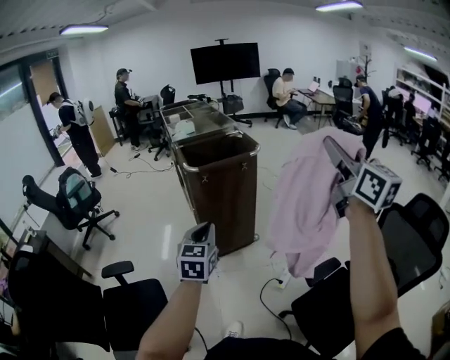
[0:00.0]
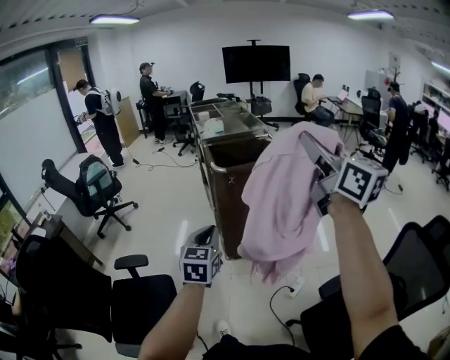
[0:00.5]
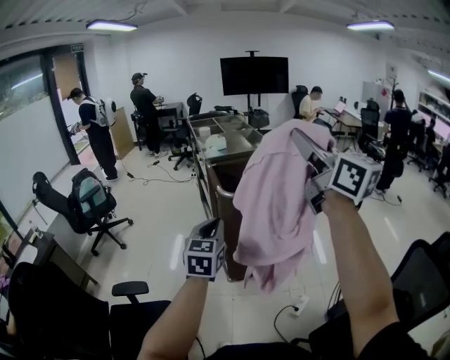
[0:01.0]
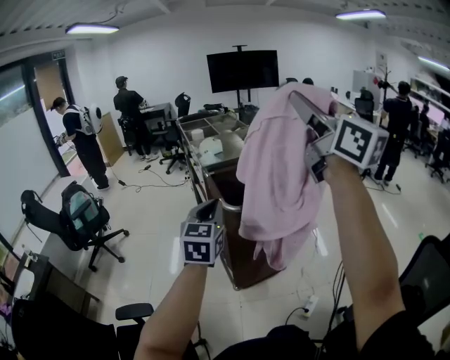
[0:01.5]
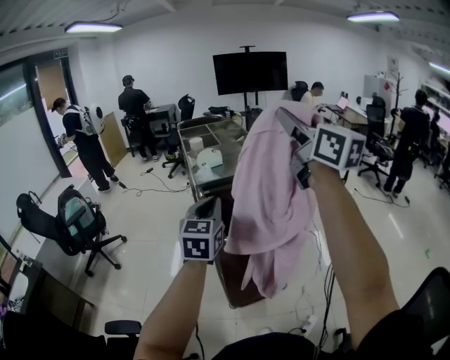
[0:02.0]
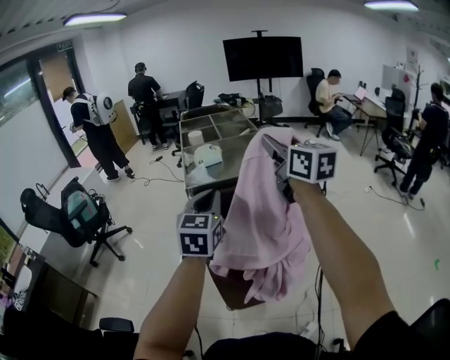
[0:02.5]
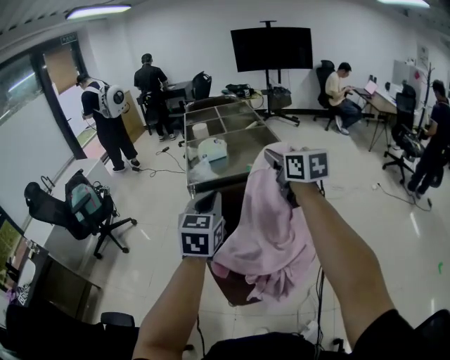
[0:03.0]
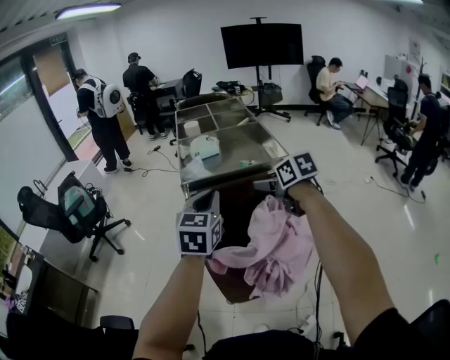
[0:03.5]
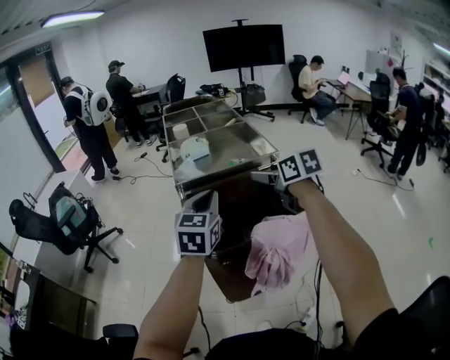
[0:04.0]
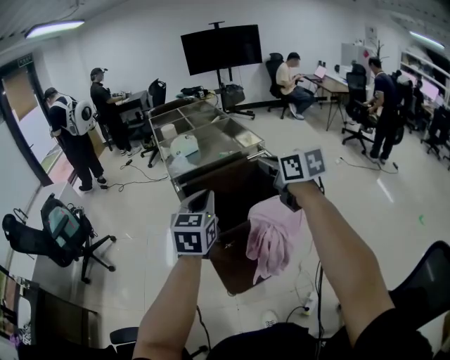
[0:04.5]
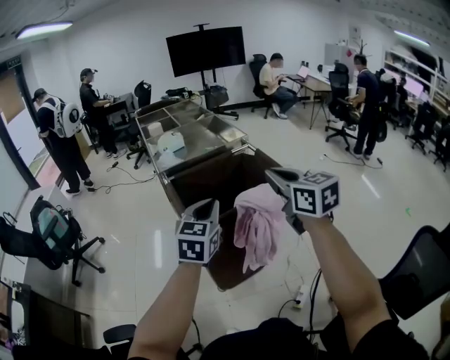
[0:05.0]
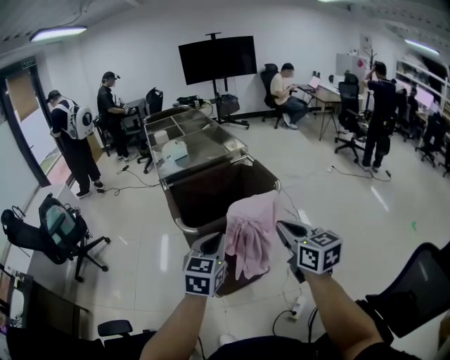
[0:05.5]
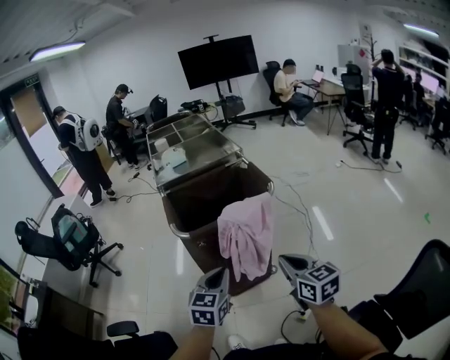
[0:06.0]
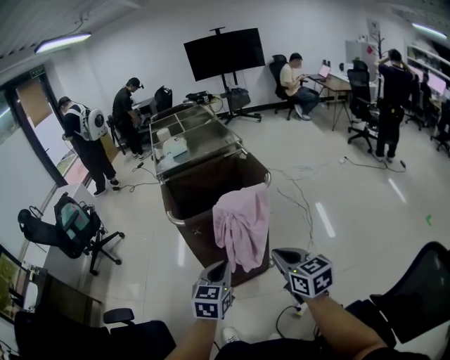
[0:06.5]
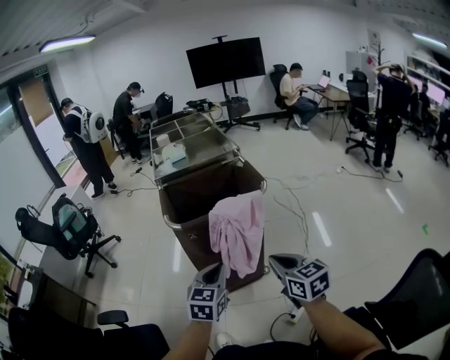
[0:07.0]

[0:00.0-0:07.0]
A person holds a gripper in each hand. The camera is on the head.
0:00.0 to 0:02.0: The two grippers travel together, forward, about 40 cm.
0:02.0 to 0:03.5: The left gripper moves forward and to the right, some 15 cm, while the right gripper is displaced downward and forward by about 40 cm, tips its fingers downward by approximately 50 degrees, and opens its fingers.
0:03.5 to 0:05.0: The left gripper heads backward, covering about 15 cm, while the right gripper goes about 25 cm backward and upward, rotates some 30 degrees, and closes.
0:05.0 to 0:07.0: The right gripper heads downward, backward and to the right, covering approximately 25 cm, while the left gripper shifts about 20 cm backward, downward and to the right.

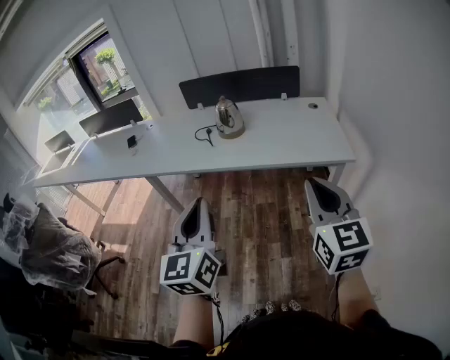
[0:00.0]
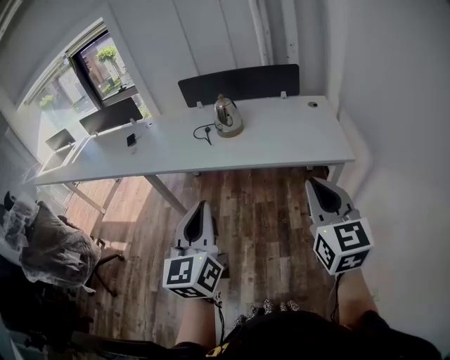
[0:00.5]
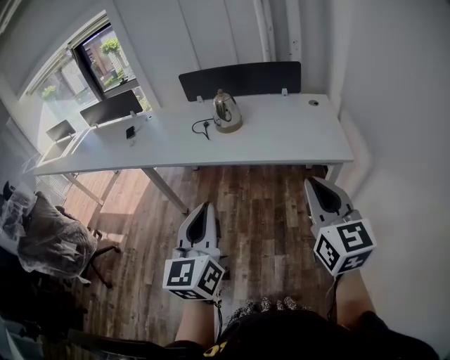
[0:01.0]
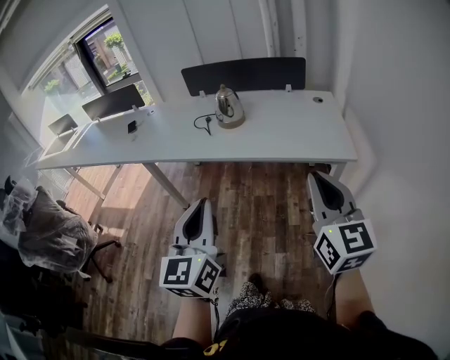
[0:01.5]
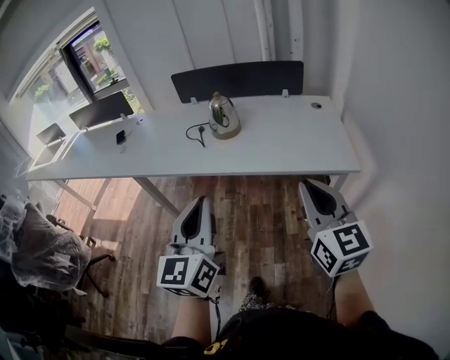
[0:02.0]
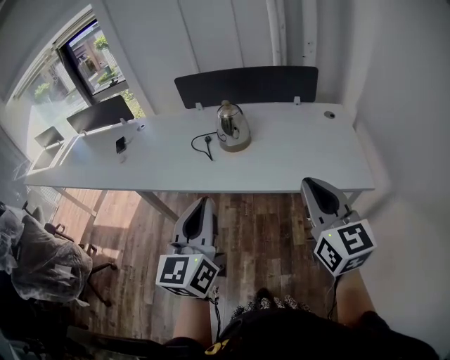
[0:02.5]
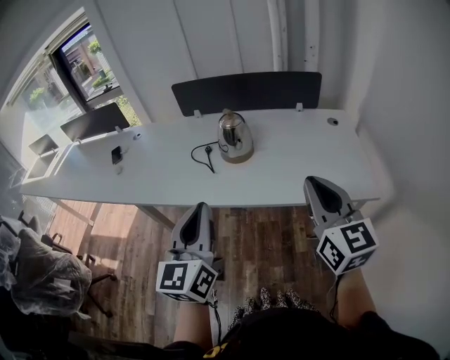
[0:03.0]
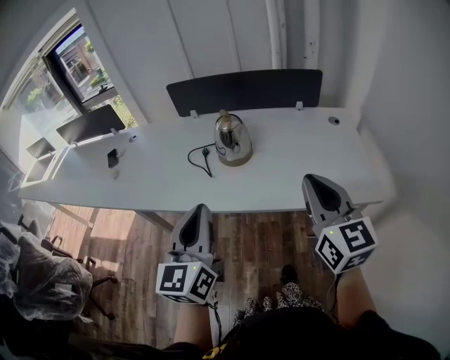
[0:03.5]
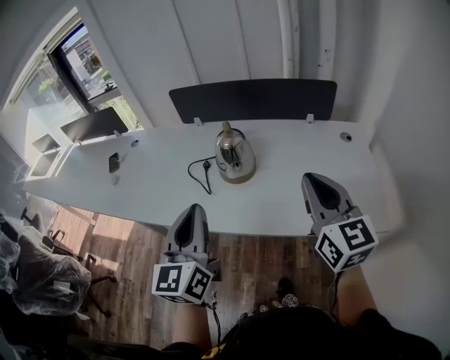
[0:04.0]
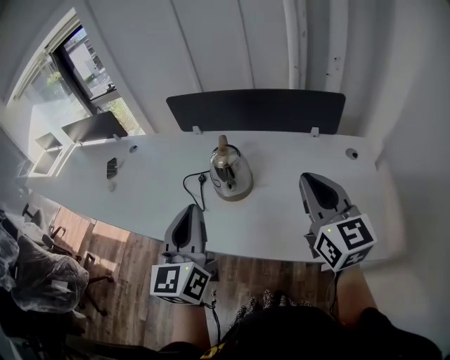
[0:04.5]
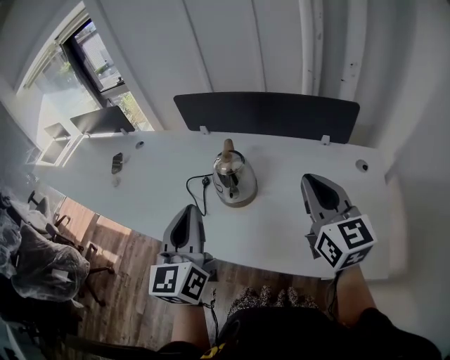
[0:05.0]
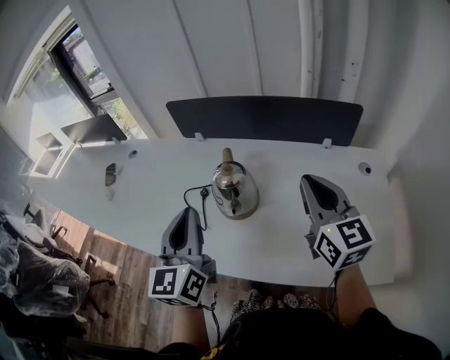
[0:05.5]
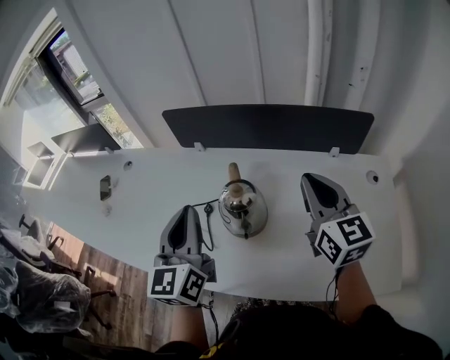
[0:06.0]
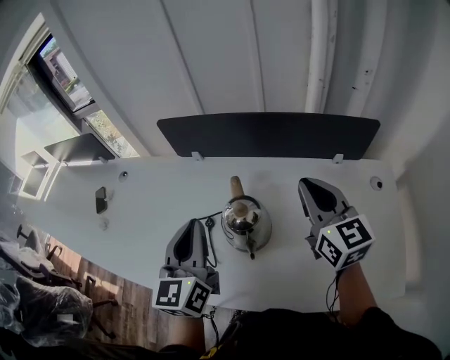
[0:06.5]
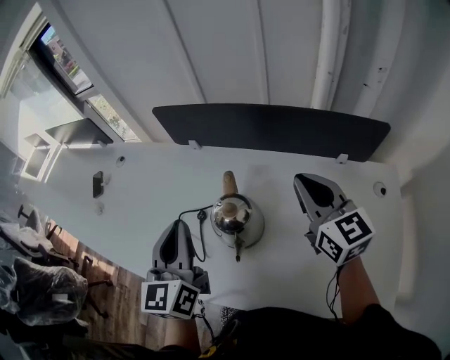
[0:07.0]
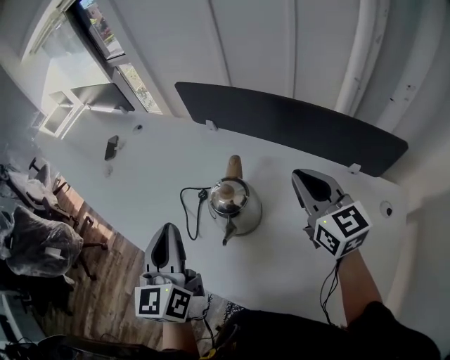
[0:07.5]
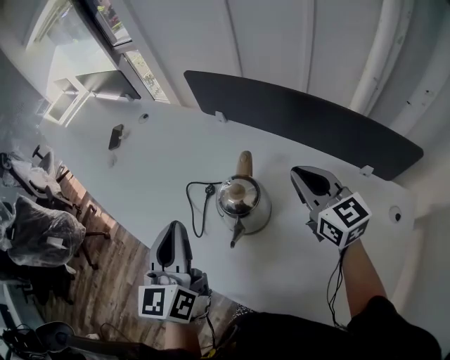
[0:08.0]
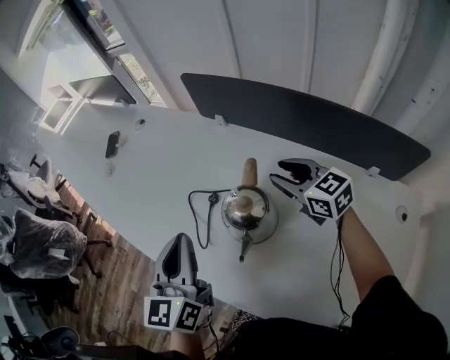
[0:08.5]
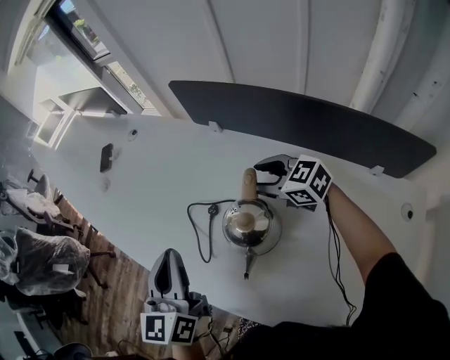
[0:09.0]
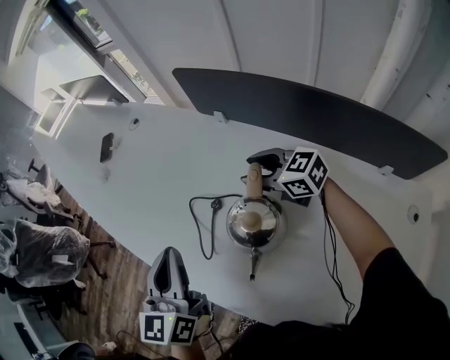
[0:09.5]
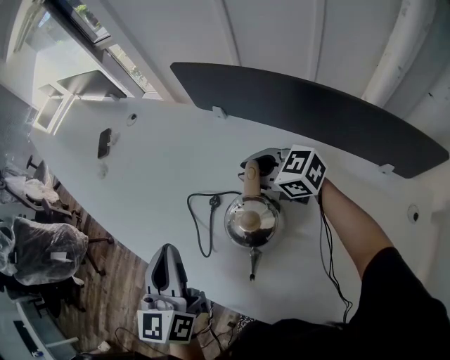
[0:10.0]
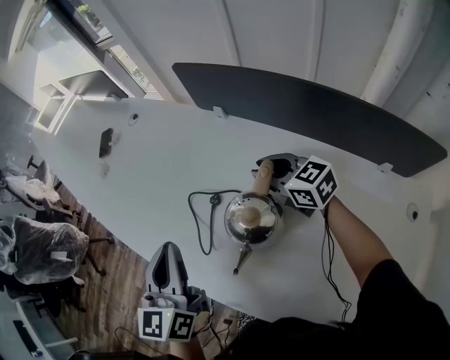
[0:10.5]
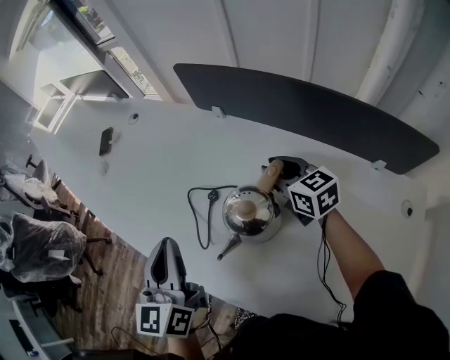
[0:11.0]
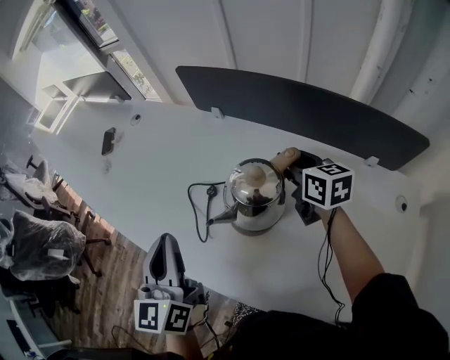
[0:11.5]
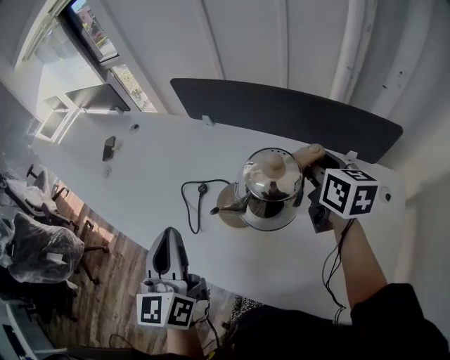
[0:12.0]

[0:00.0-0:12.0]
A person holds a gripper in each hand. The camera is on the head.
0:00.0 to 0:02.0: The grippers both shift forward by some 10 cm.
0:02.0 to 0:04.0: Both grippers travel together forward, roughly 30 cm.
0:04.0 to 0:06.0: The grippers both shift forward by about 25 cm.
0:06.0 to 0:08.0: The left gripper is displaced downward by some 5 cm, and turns by approximately 20 degrees, while the right gripper ends up about 15 cm from where it was, and swivels approximately 30 degrees.
0:08.0 to 0:10.0: The right gripper moves forward, downward and to the left, roughly 20 cm, changes its angle by approximately 40 degrees, and opens; the left gripper heads forward, covering approximately 5 cm.
0:10.0 to 0:12.0: The right gripper shifts by some 30 cm, and rotates roughly 60 degrees. The left gripper changes place by about 10 cm.

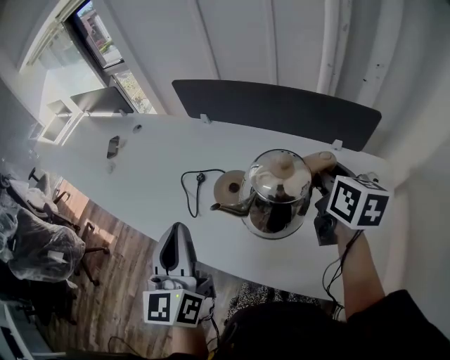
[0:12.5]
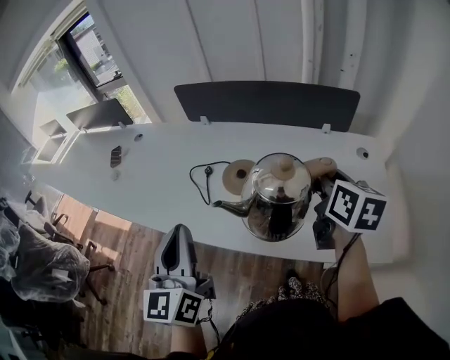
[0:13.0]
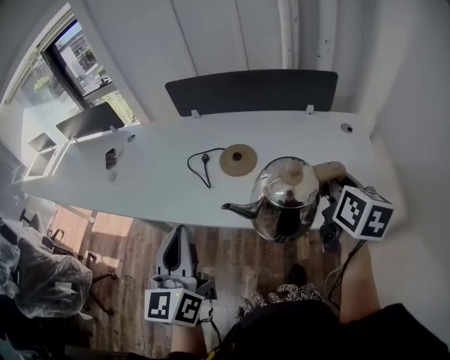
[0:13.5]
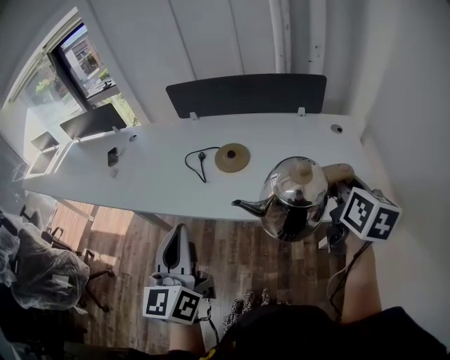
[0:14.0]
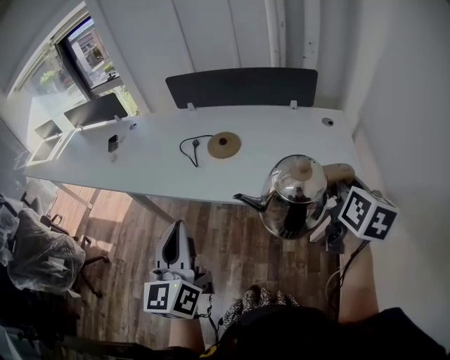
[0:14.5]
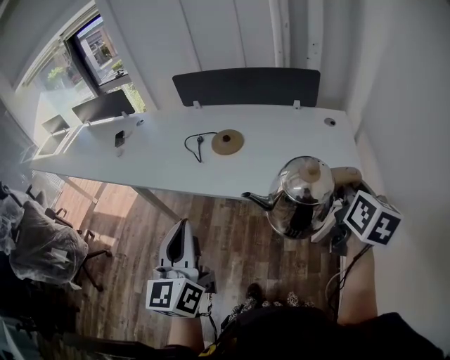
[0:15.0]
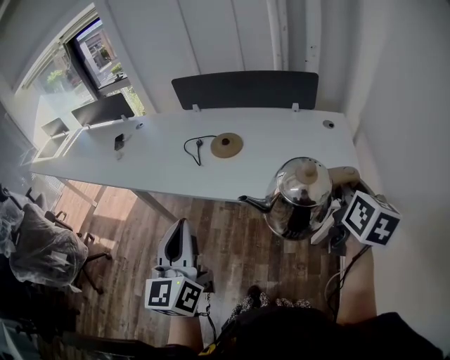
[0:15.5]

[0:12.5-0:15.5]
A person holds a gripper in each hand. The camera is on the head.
0:12.5 to 0:14.0: The right gripper moves backward, approximately 35 cm, and rotates roughly 20 degrees; the left gripper moves backward, some 20 cm.
0:14.0 to 0:15.5: Both grippers travel together backward and to the right, roughly 10 cm.

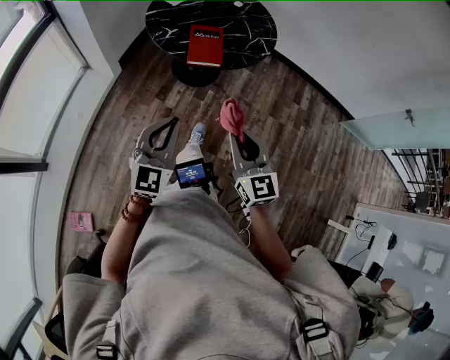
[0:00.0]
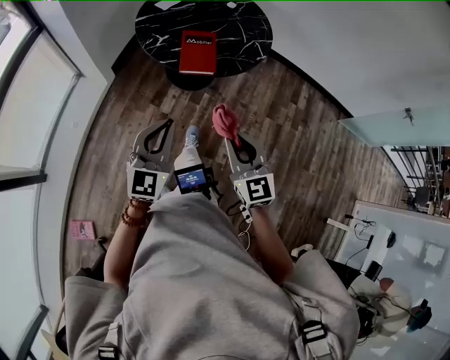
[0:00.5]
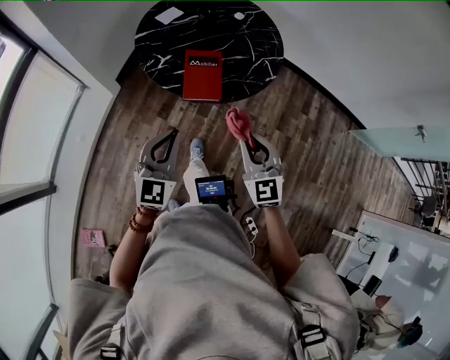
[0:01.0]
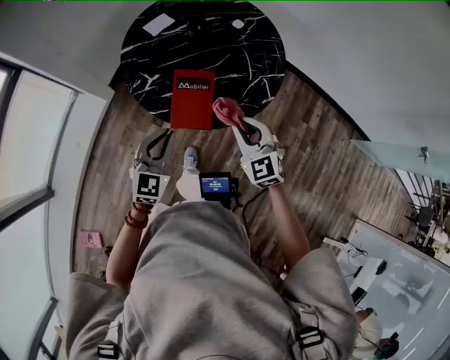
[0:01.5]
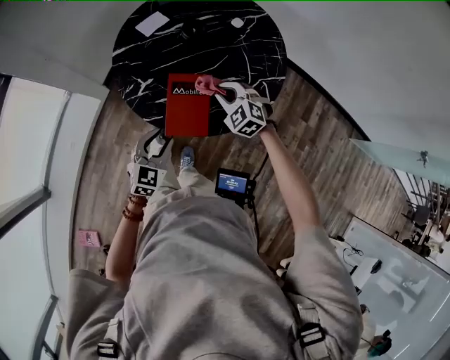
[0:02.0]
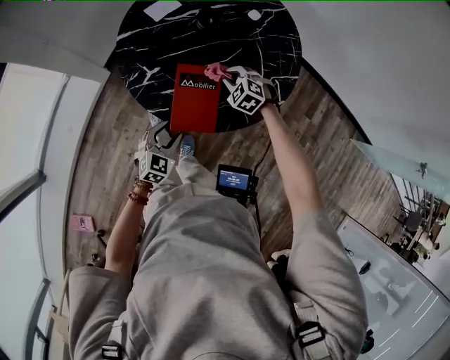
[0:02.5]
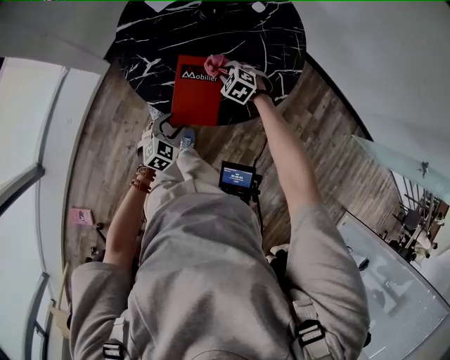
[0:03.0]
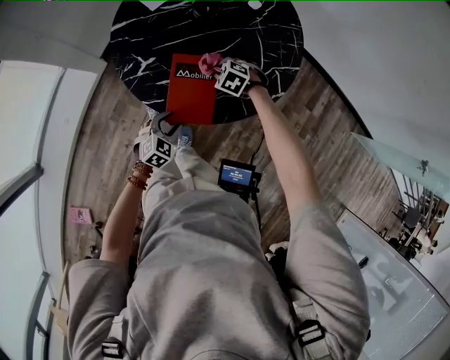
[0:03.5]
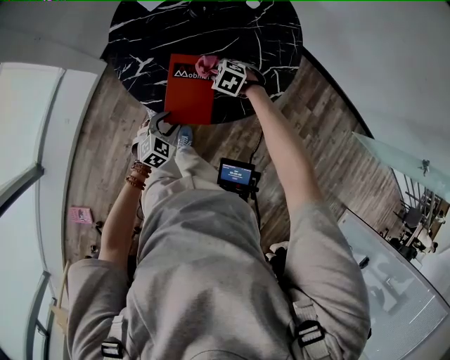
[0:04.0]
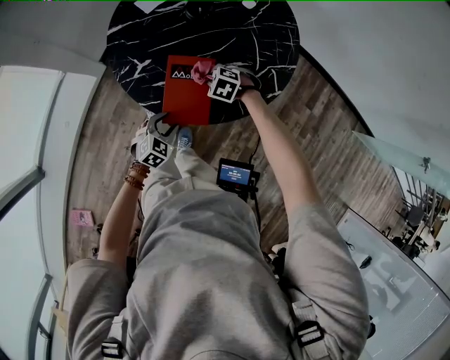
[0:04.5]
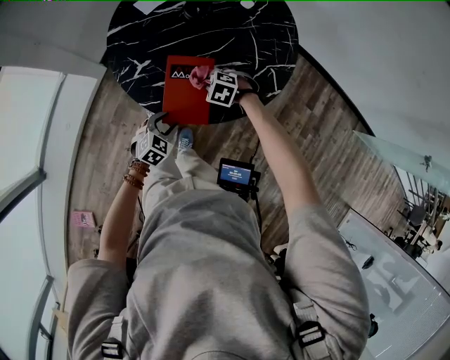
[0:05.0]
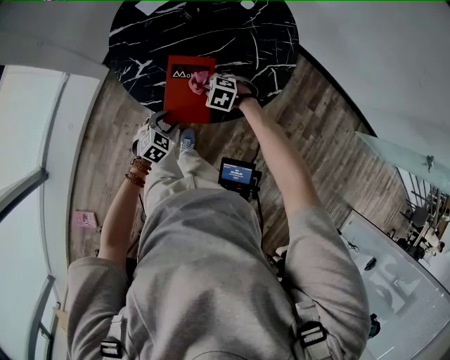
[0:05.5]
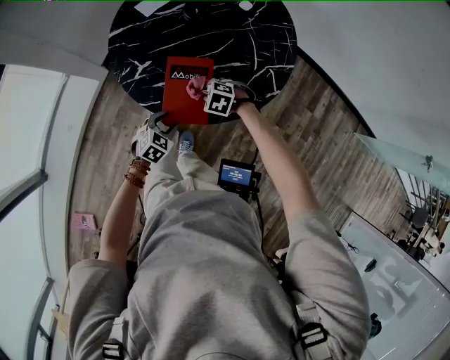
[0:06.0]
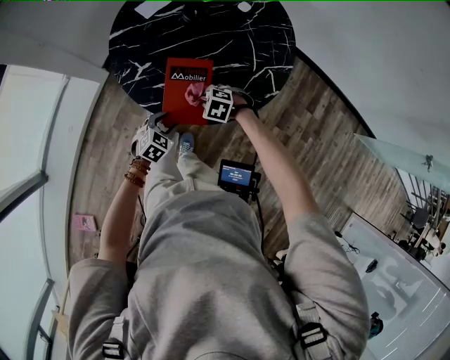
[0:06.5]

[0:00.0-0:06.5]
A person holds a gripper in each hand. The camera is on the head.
0:00.0 to 0:02.0: The right gripper moves forward, some 50 cm, and points its fingers roughly 40 degrees further downward; the left gripper shifts approximately 40 cm forward and downward, turns by approximately 30 degrees, and opens.
0:02.0 to 0:04.5: The grippers both shift downward by roughly 15 cm. The left gripper turns by about 20 degrees; the right gripper swivels roughly 30 degrees.
0:04.5 to 0:06.5: The right gripper changes place by some 10 cm.
